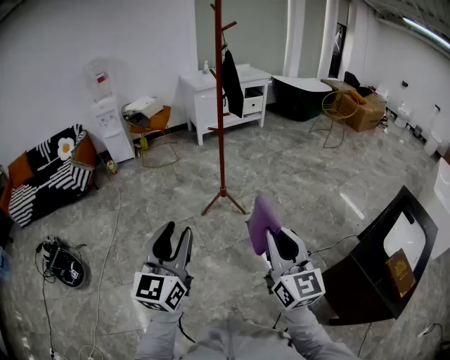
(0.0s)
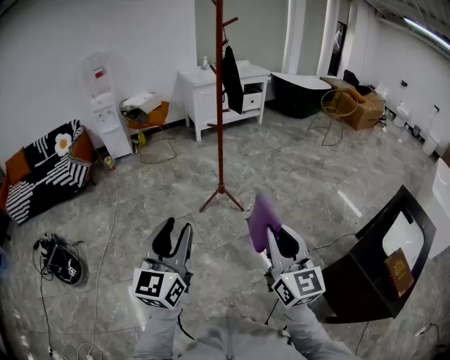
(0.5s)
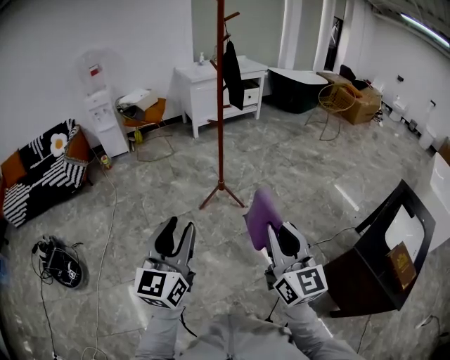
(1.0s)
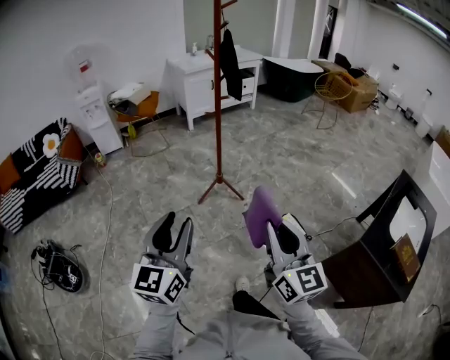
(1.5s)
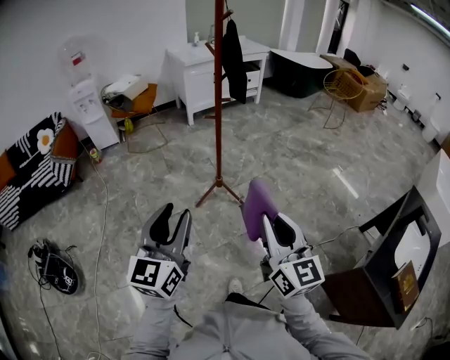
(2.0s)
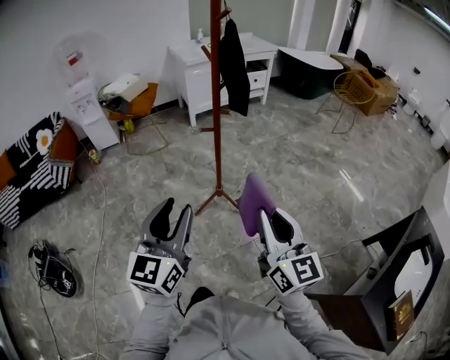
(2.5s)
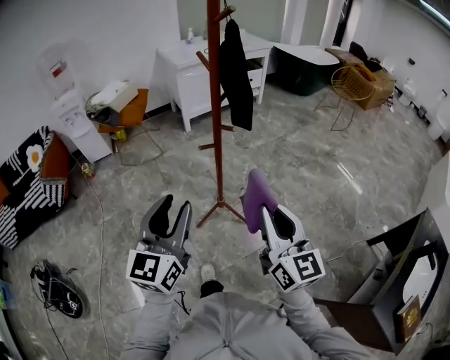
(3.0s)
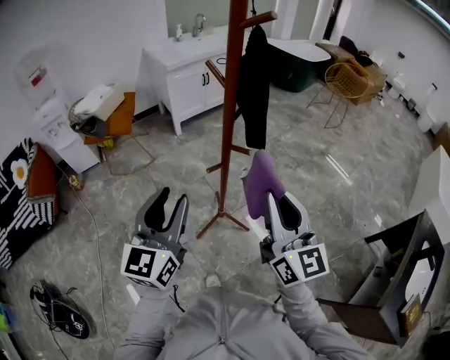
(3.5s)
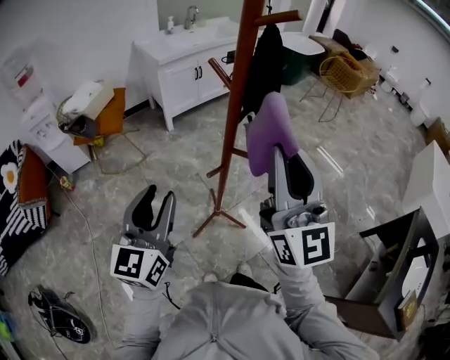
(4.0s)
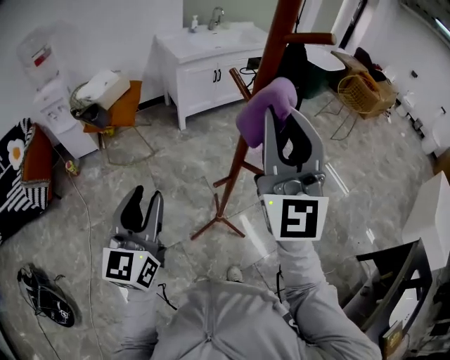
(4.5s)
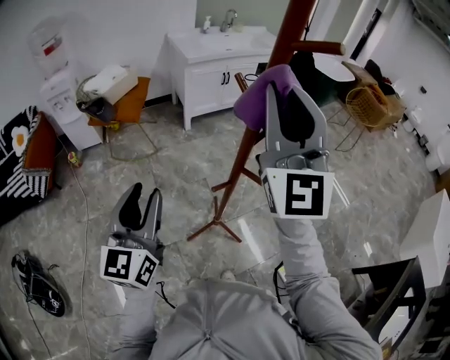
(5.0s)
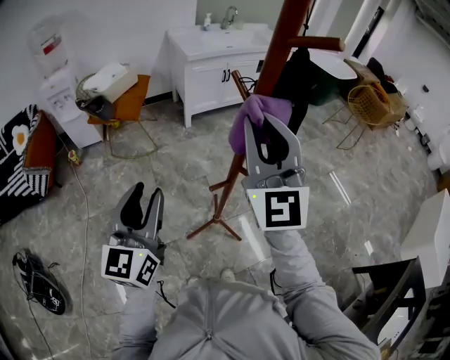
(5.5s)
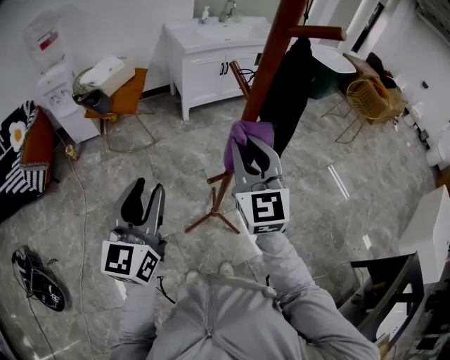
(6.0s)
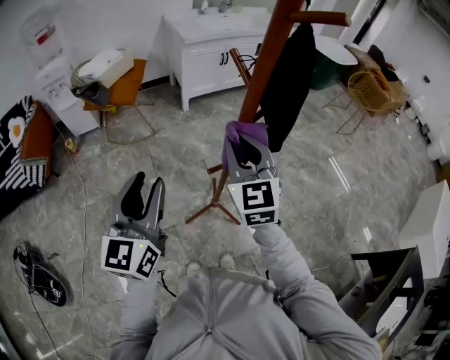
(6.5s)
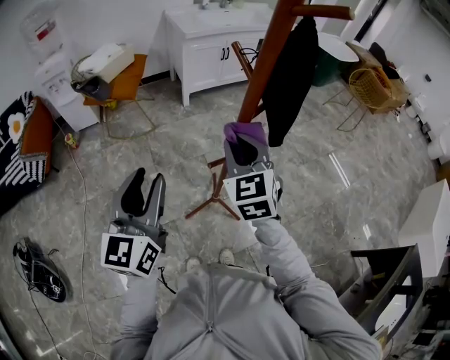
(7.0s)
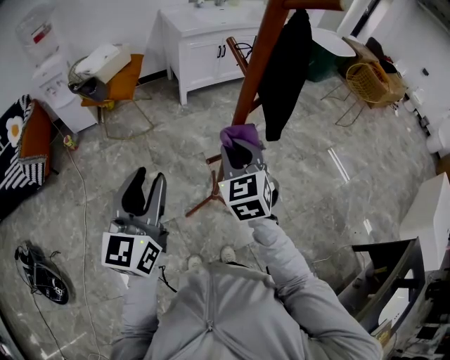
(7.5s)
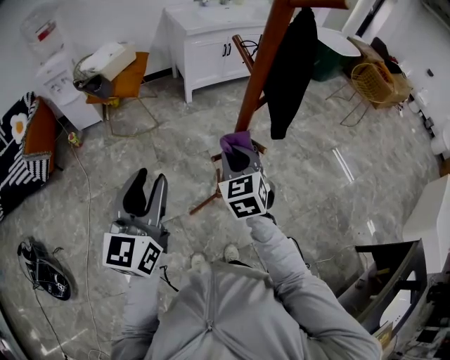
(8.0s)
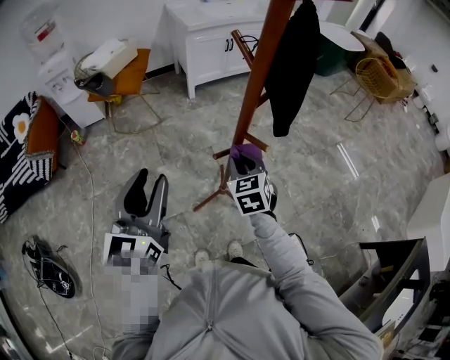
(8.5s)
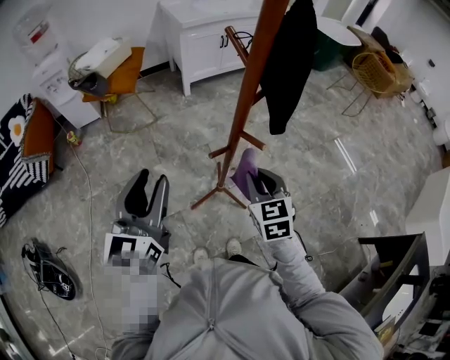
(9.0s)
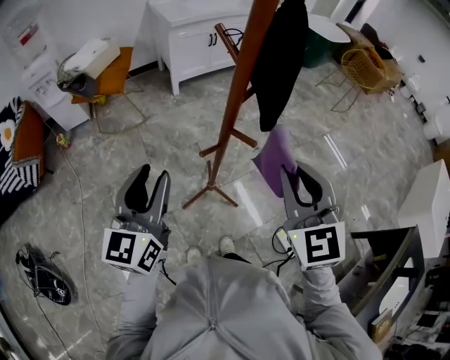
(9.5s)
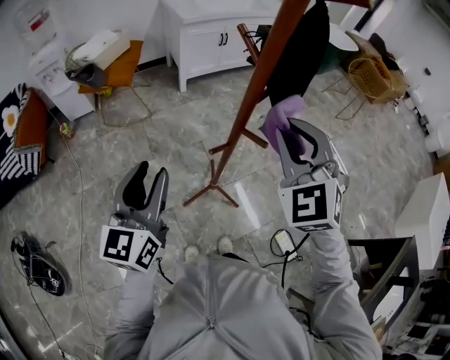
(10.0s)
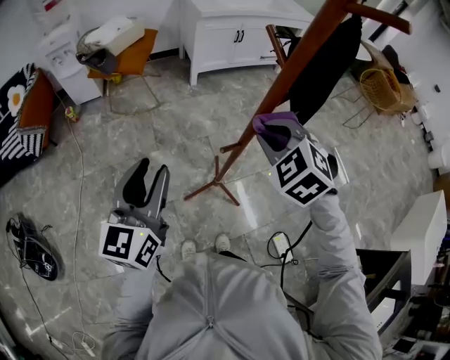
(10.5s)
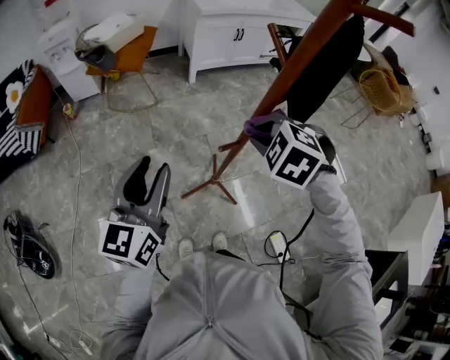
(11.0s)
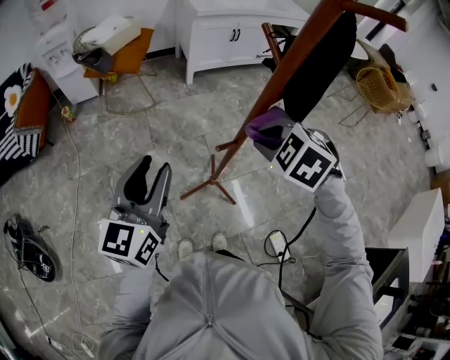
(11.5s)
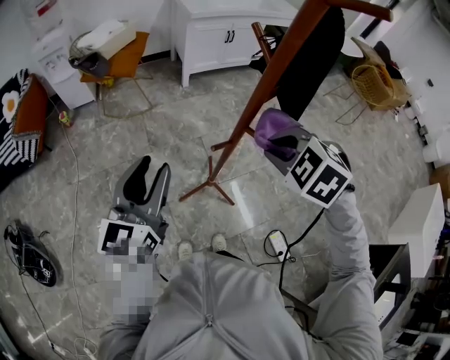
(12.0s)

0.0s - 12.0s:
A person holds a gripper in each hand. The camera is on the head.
0.0s - 2.0s: Both grippers move forward, some 20 cm.
2.0s - 4.0s: The two grippers travel together, forward, approximately 40 cm. The right gripper changes its angle by about 30 degrees.
4.0s - 6.0s: The right gripper goes about 15 cm forward and downward, and swivels approximately 30 degrees.
6.0s - 8.0s: The right gripper is displaced downward by some 15 cm, and rotates approximately 30 degrees.
8.0s - 10.0s: The right gripper heads upward and to the right, covering approximately 20 cm, and turns by some 30 degrees.
10.0s - 12.0s: The right gripper goes about 10 cm downward, and tilts its fingers roughly 40 degrees downward.

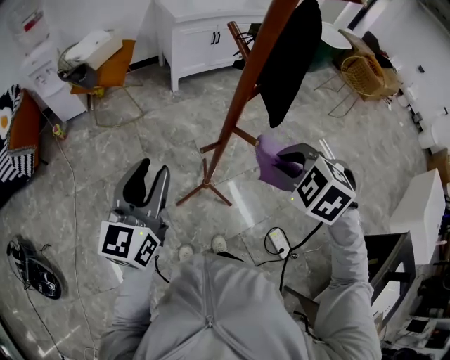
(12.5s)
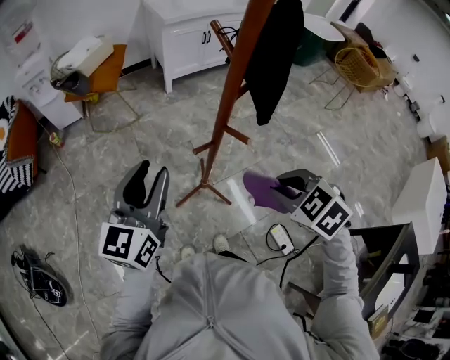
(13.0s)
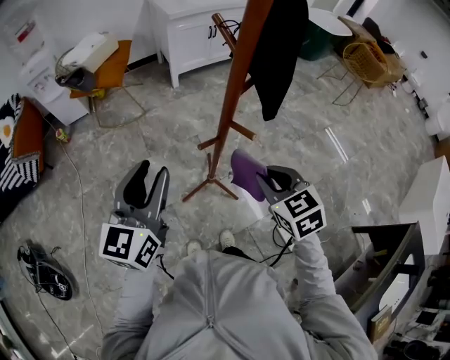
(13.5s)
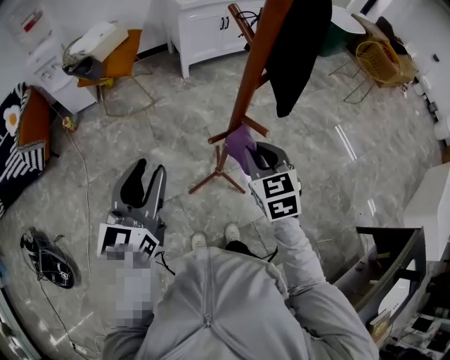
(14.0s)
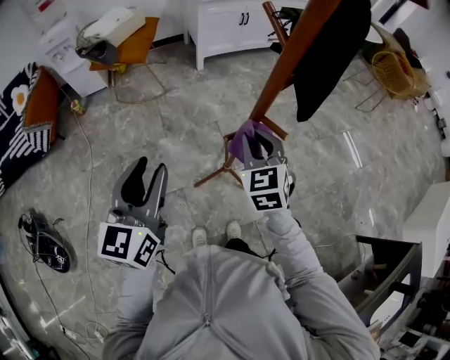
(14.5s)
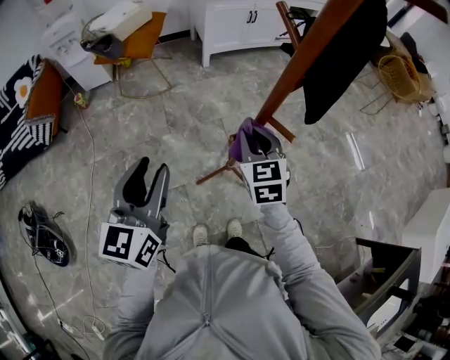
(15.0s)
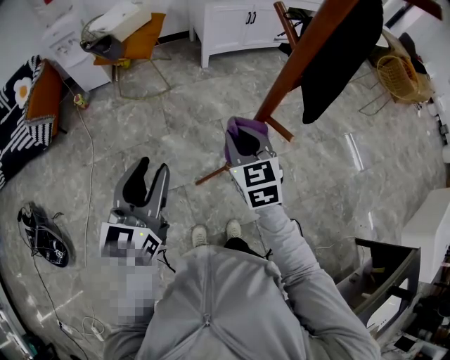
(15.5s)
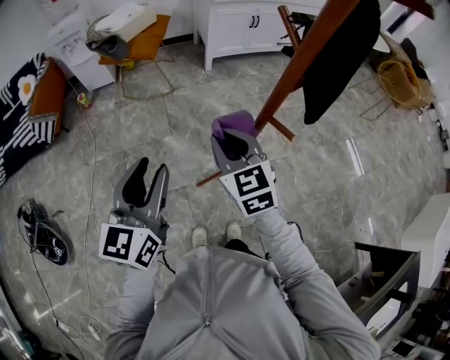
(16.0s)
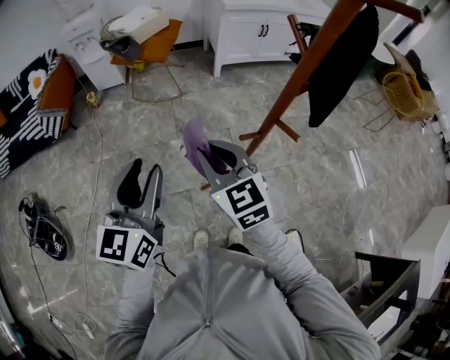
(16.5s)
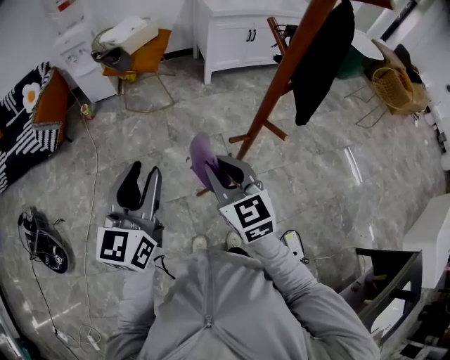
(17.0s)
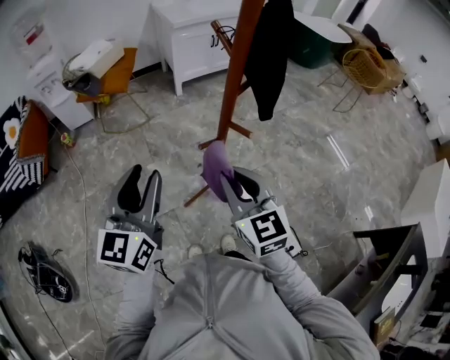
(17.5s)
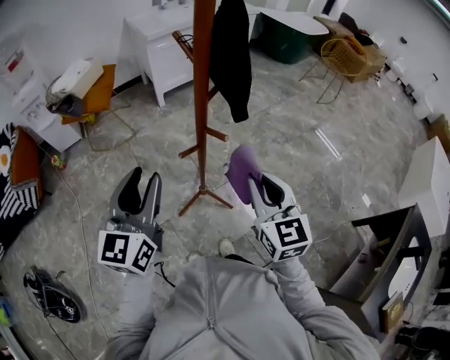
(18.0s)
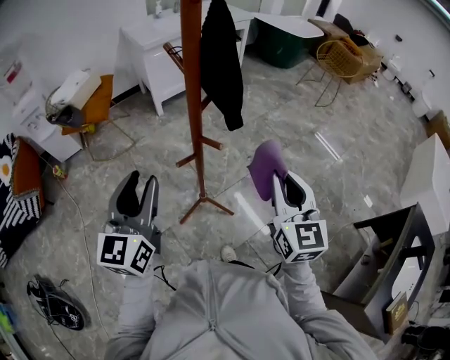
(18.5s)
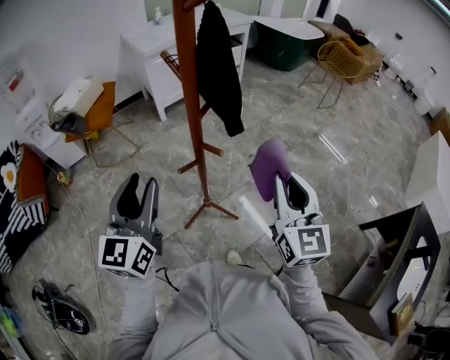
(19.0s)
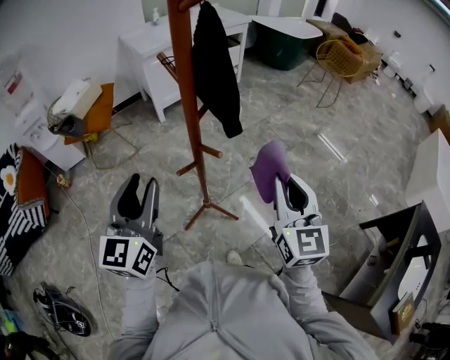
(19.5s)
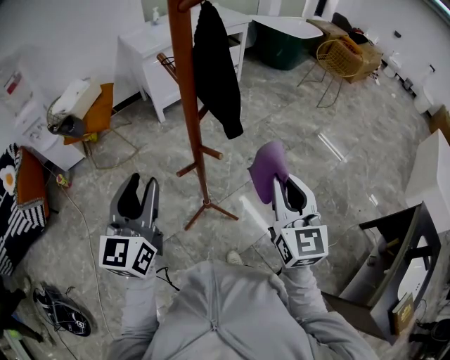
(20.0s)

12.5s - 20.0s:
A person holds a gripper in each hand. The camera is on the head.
12.5s - 14.5s: The left gripper moves roughly 5 cm; the right gripper is displaced to the left, forward and downward by some 15 cm, and tips its fingers upward by some 30 degrees.
14.5s - 16.5s: The right gripper moves to the left, some 15 cm, and swivels approximately 30 degrees. The left gripper goes roughly 5 cm to the left.
16.5s - 18.0s: The right gripper shifts by approximately 25 cm, and swivels approximately 40 degrees, while the left gripper moves roughly 15 cm.
18.0s - 20.0s: The right gripper heads to the right, covering about 5 cm.

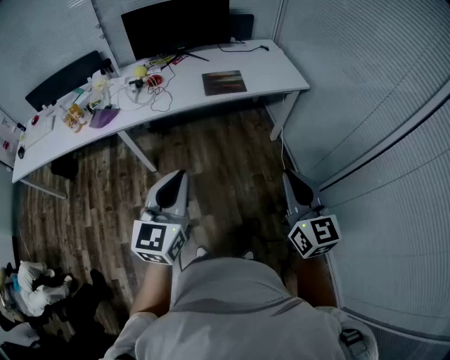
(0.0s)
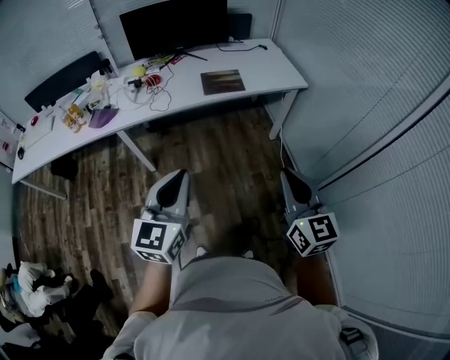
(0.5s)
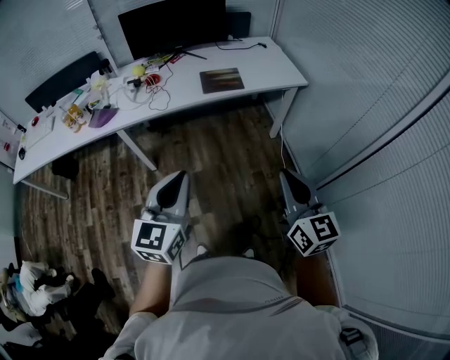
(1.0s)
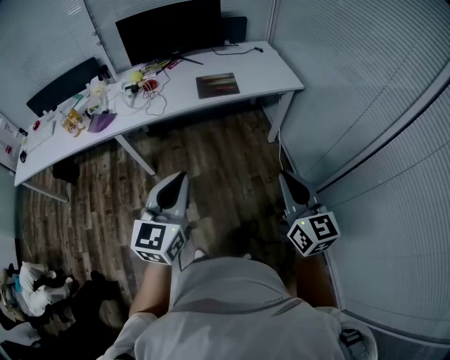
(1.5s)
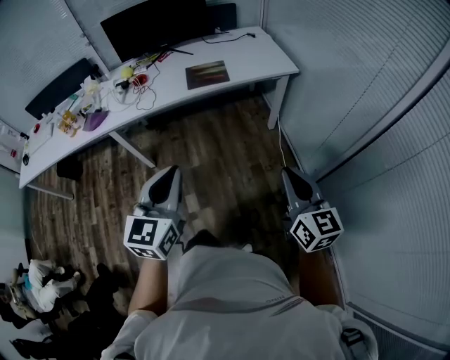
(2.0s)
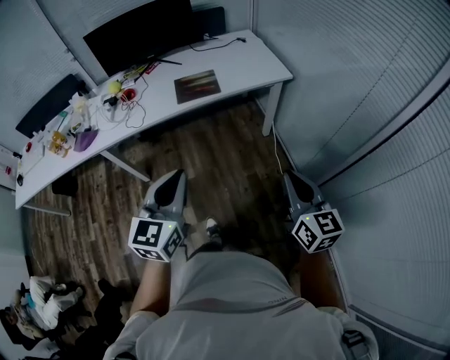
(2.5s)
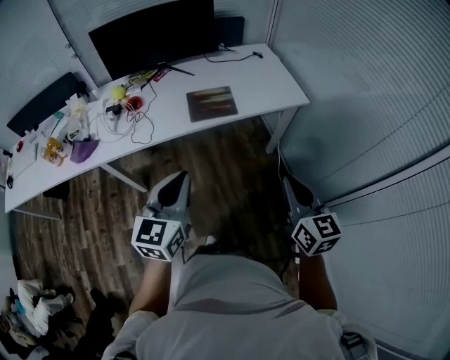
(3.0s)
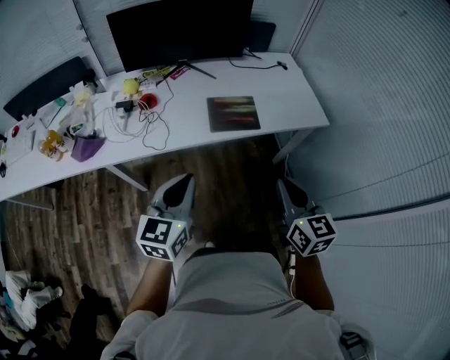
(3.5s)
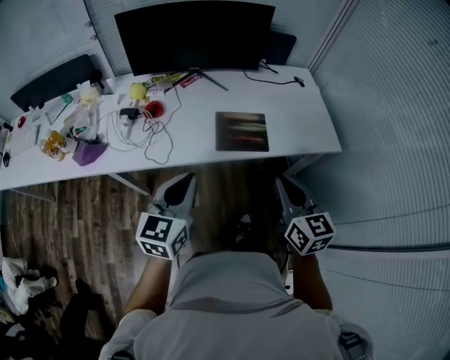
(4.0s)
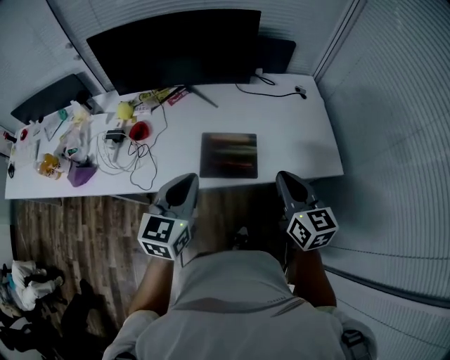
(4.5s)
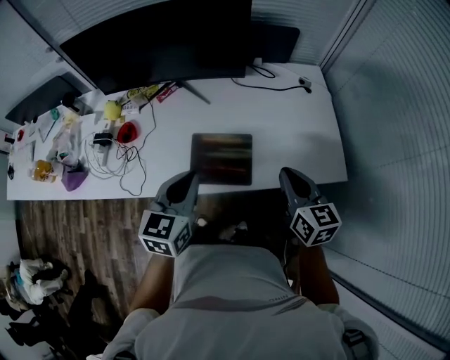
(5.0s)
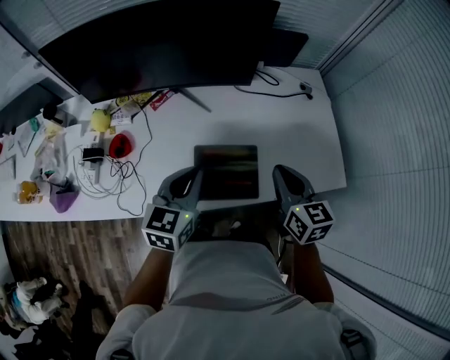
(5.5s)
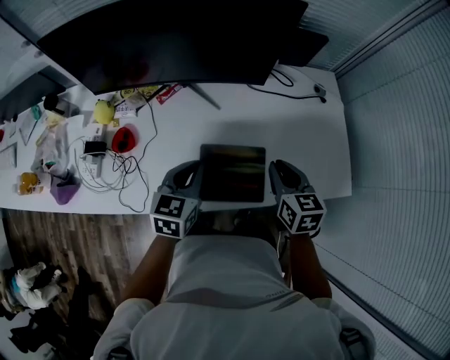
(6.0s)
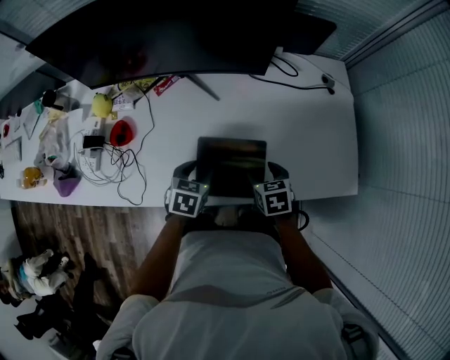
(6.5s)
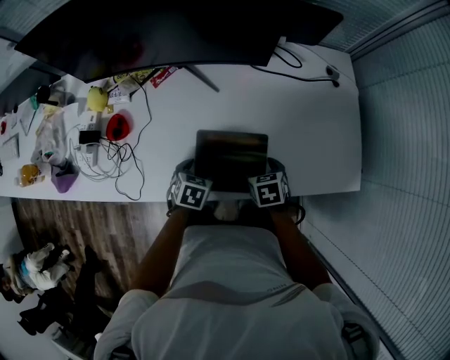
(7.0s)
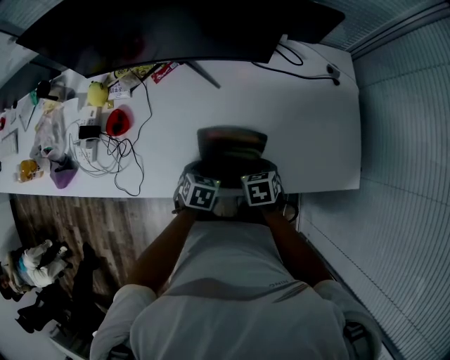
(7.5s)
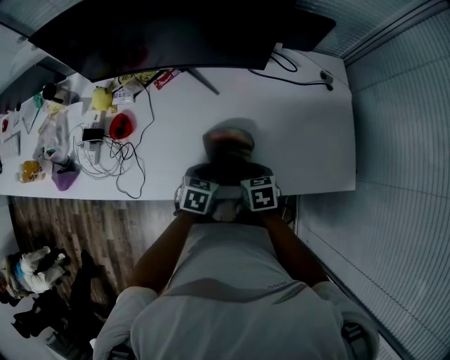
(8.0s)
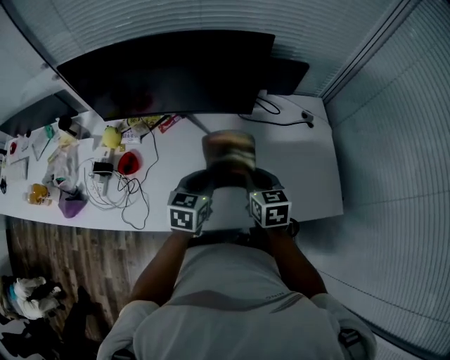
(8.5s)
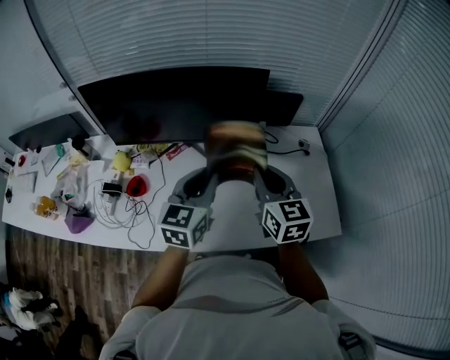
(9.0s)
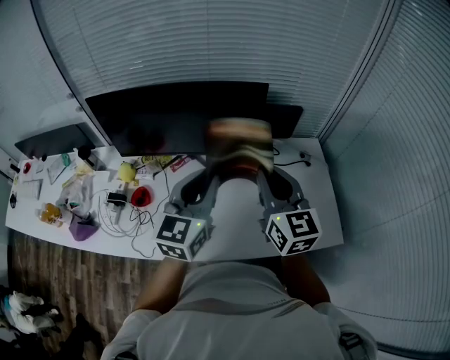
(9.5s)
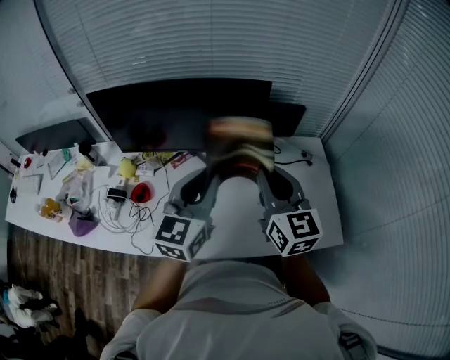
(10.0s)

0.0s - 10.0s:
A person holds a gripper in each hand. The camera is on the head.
0.0s - 2.0s: The right gripper travels to the right and downward by roughly 15 cm; the left gripper shifts roughly 10 cm to the right.
2.0s - 4.0s: Both grippers are carried forward, roughly 50 cm.
4.0s - 6.0s: The grippers both shift forward by some 35 cm. The right gripper changes its angle by about 20 degrees.
6.0s - 8.0s: The two grippers go approximately 15 cm downward. The right gripper turns by about 20 degrees, and opens and closes again. Meanwhile the left gripper swivels about 20 degrees, and opens, then closes once more.
8.0s - 10.0s: Both grippers move upward, some 40 cm. The right gripper tilts its fingers some 50 degrees upward, while the left gripper tilts its fingers some 50 degrees upward.
